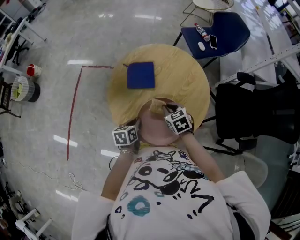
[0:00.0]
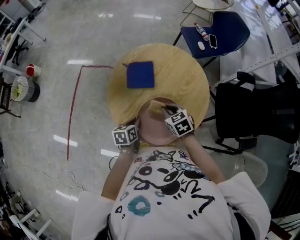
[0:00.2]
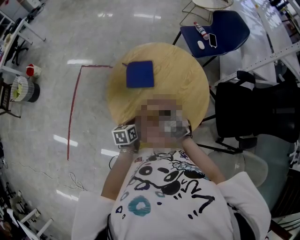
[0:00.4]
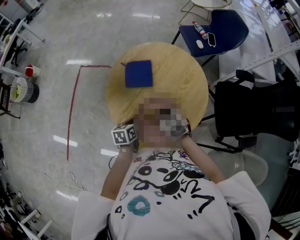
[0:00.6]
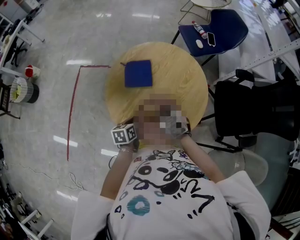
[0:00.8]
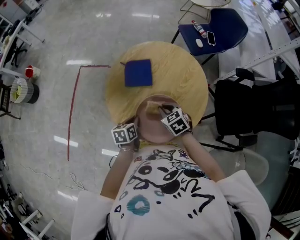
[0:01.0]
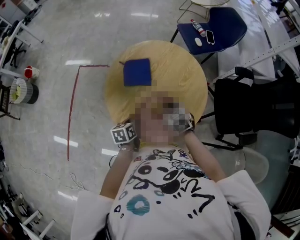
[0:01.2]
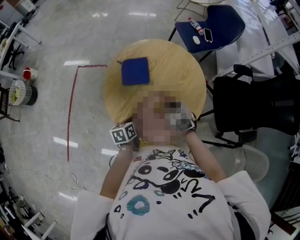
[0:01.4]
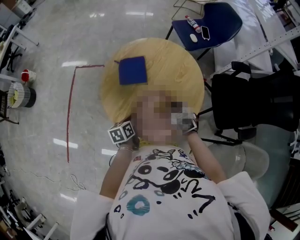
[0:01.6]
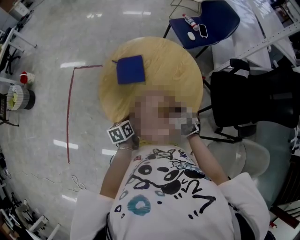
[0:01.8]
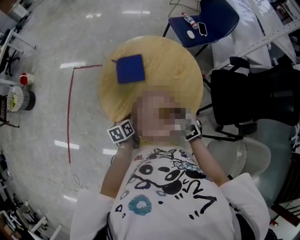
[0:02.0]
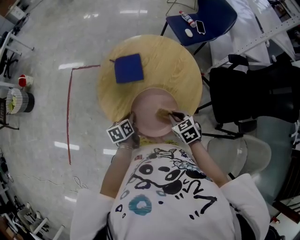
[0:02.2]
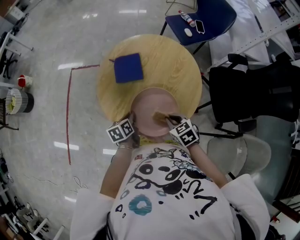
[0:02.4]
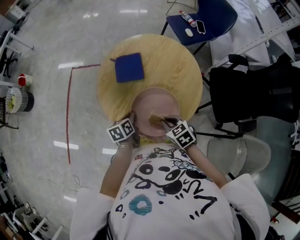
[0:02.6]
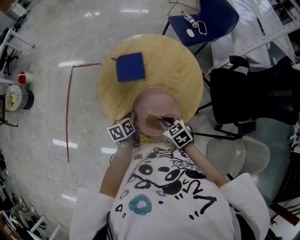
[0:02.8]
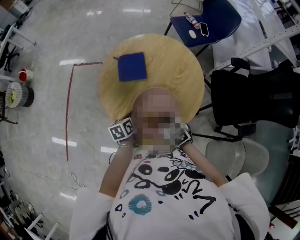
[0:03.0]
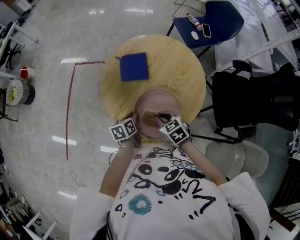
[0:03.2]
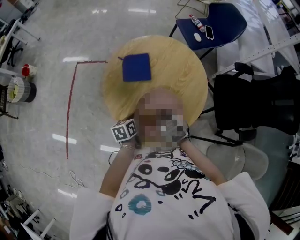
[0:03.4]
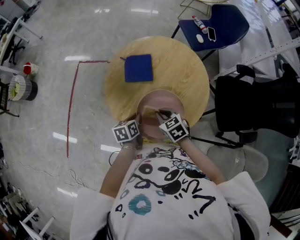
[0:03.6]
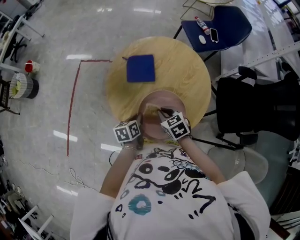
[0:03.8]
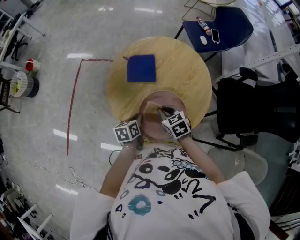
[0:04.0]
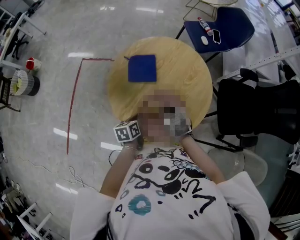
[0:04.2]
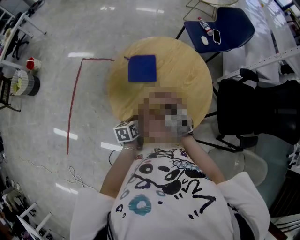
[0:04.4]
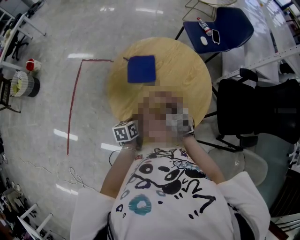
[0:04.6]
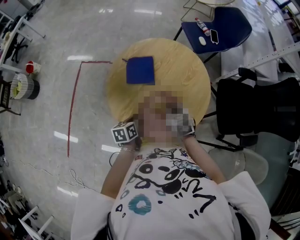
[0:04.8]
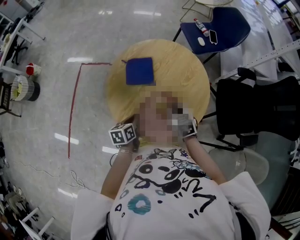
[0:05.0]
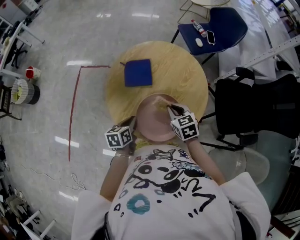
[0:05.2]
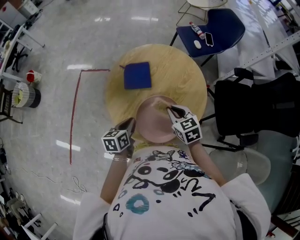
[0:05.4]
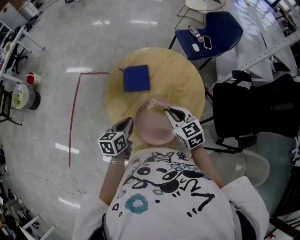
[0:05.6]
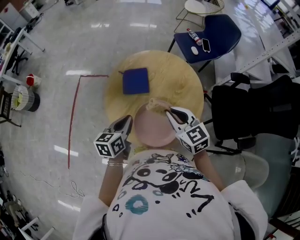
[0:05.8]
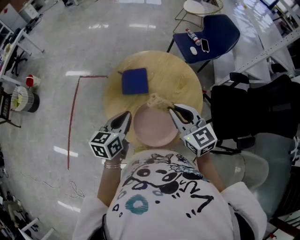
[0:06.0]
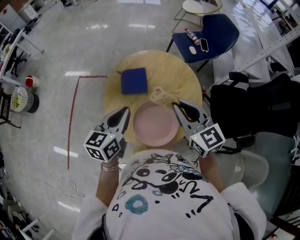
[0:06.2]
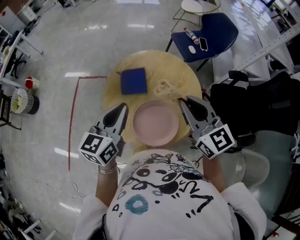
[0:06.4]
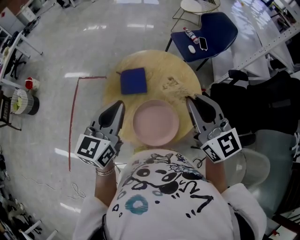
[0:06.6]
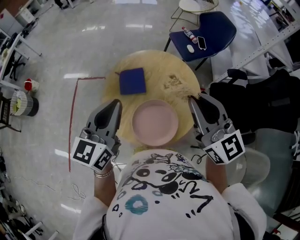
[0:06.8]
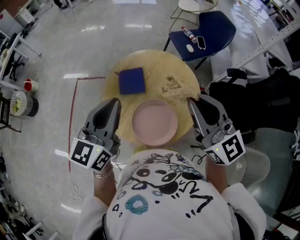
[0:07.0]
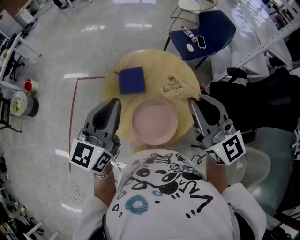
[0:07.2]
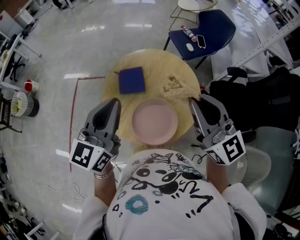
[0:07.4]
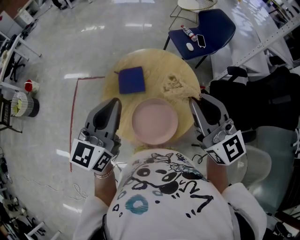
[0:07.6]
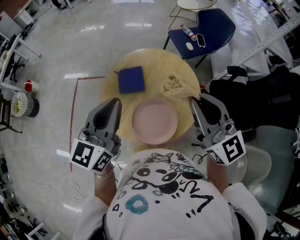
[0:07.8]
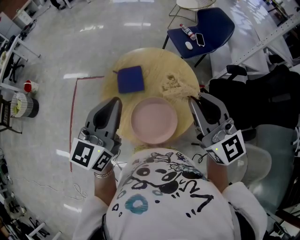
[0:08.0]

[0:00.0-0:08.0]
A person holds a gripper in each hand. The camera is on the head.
0:00.0 to 0:01.6: The right gripper moves roughly 5 cm.
0:01.6 to 0:03.2: The right gripper goes approximately 10 cm to the left and backward.
0:03.2 to 0:04.8: The right gripper travels forward by some 5 cm.
0:04.8 to 0:06.4: Both grippers move upward, roughly 30 cm. The left gripper tilts its fingers approximately 30 degrees upward; the right gripper tilts its fingers some 40 degrees upward.
0:06.4 to 0:08.0: The two grippers go some 5 cm upward.

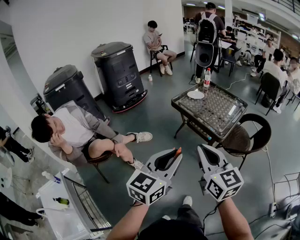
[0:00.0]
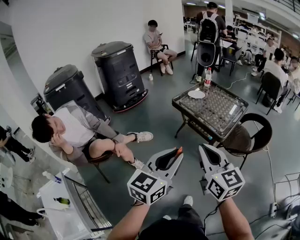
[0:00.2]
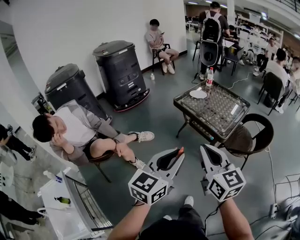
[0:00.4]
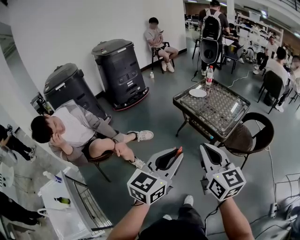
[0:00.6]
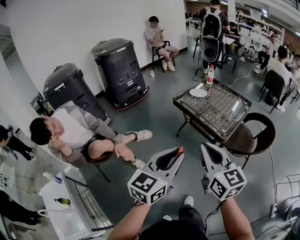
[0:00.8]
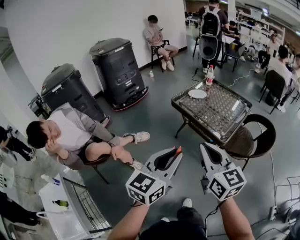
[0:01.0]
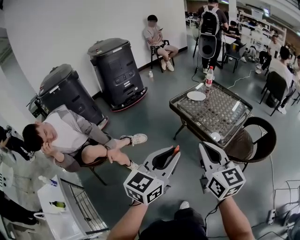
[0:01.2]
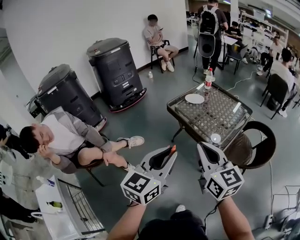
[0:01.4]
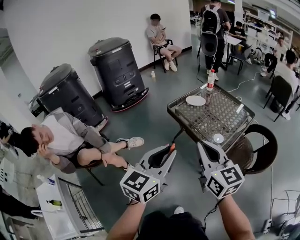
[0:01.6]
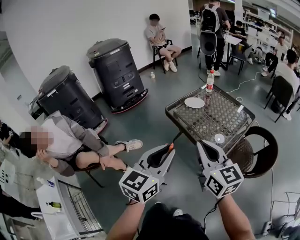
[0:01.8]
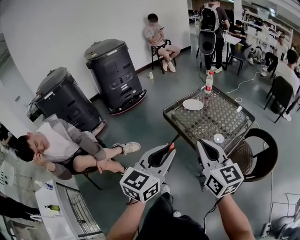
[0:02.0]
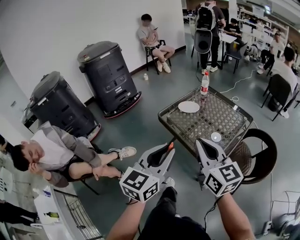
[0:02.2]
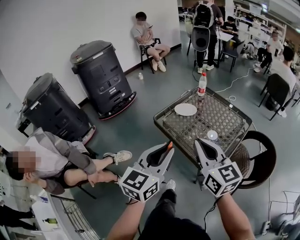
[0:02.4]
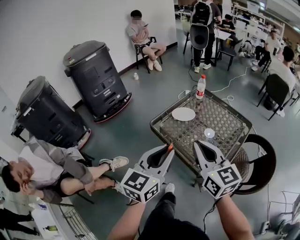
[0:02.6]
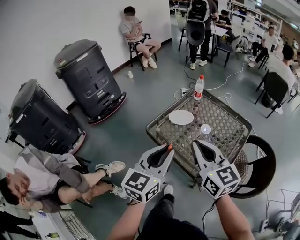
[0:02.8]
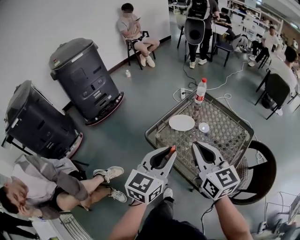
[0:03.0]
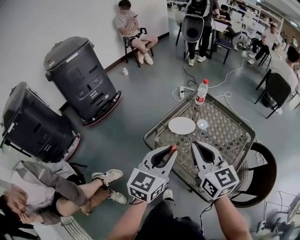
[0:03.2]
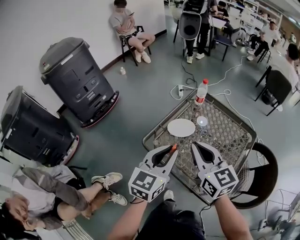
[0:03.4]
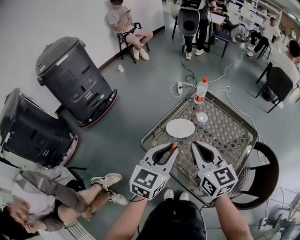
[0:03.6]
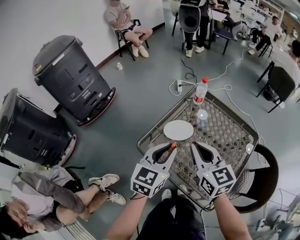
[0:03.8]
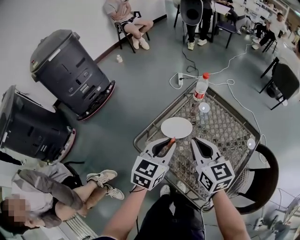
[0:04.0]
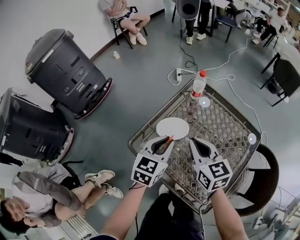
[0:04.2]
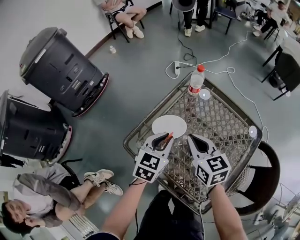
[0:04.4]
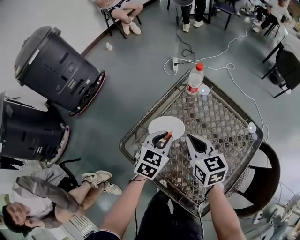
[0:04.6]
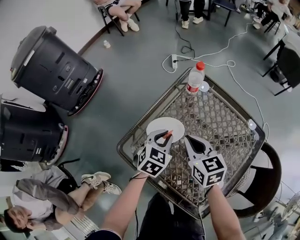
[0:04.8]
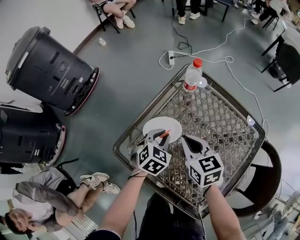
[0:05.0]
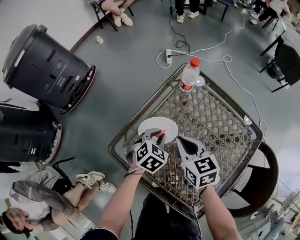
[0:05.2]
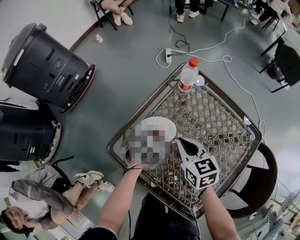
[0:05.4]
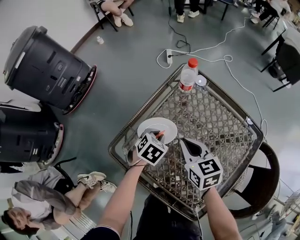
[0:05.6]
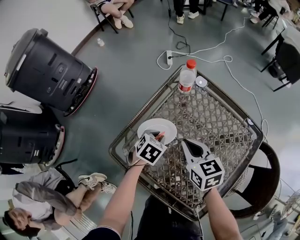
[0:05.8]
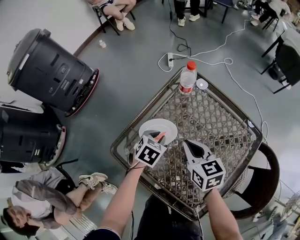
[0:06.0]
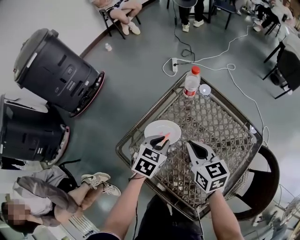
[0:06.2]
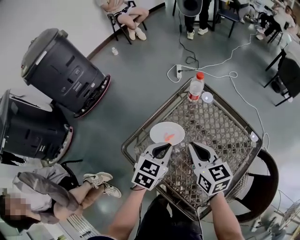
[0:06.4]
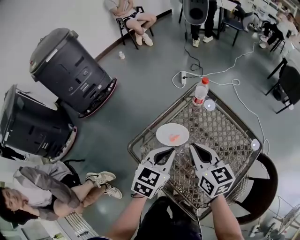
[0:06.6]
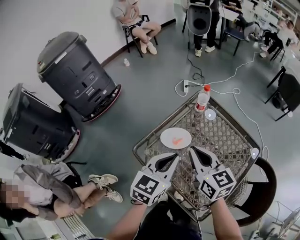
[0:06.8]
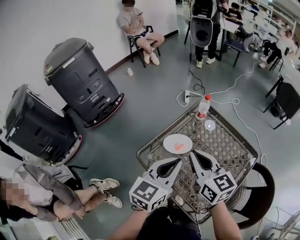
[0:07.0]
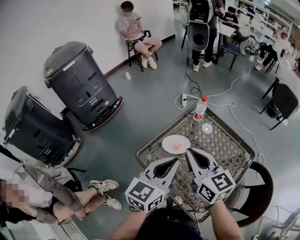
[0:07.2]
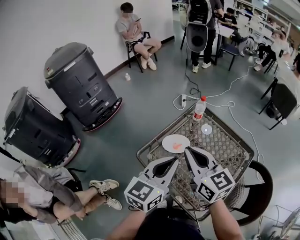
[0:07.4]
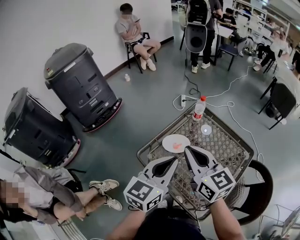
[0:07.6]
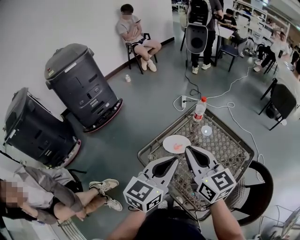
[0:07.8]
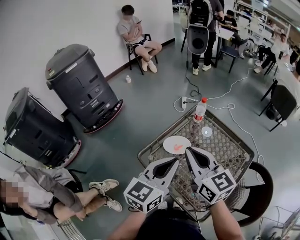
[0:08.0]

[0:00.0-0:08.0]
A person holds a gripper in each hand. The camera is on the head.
0:00.0 to 0:01.6: The right gripper moves forward and to the right, about 20 cm, while the left gripper is displaced forward by approximately 20 cm.
0:01.6 to 0:03.2: The two grippers go roughly 40 cm forward.
0:03.2 to 0:04.8: Both grippers move downward and forward, approximately 30 cm. The left gripper tilts its fingers roughly 30 degrees downward; the right gripper swivels some 20 degrees.
0:04.8 to 0:06.4: Both grippers travel together upward, roughly 5 cm.
0:06.4 to 0:08.0: The right gripper shifts roughly 20 cm upward, and turns by approximately 20 degrees, while the left gripper goes roughly 25 cm upward and backward, and rotates some 30 degrees.

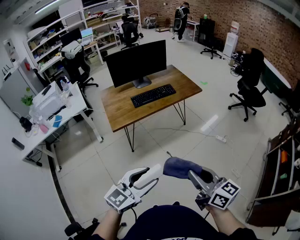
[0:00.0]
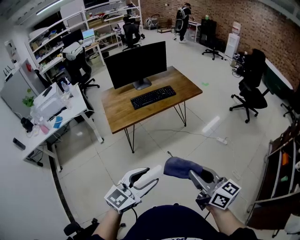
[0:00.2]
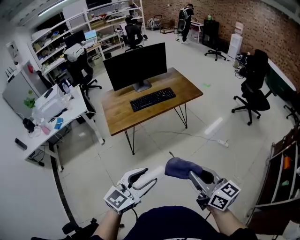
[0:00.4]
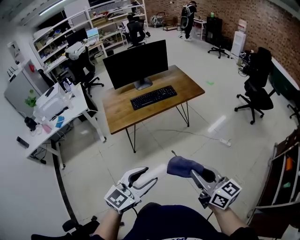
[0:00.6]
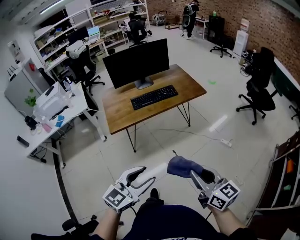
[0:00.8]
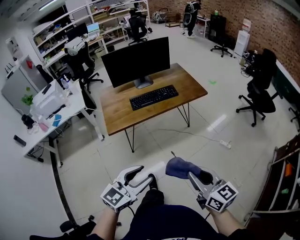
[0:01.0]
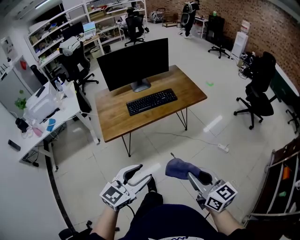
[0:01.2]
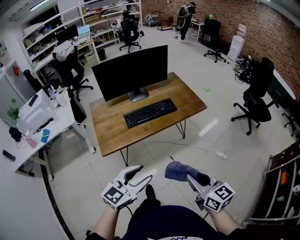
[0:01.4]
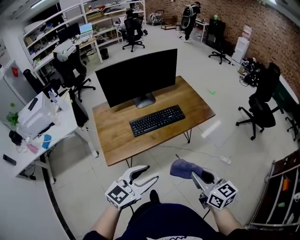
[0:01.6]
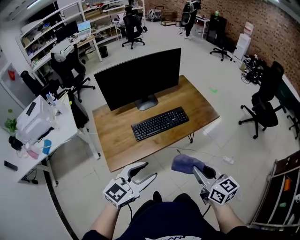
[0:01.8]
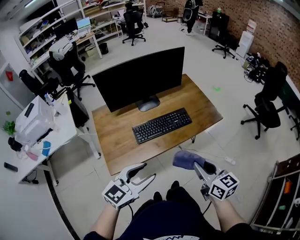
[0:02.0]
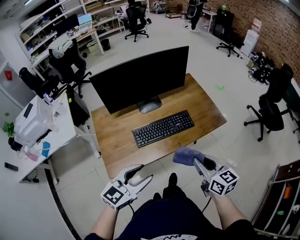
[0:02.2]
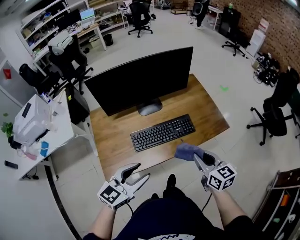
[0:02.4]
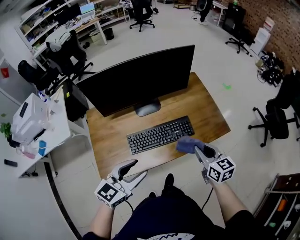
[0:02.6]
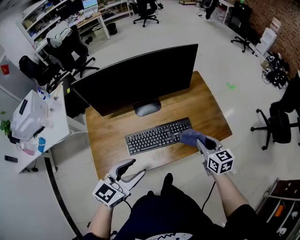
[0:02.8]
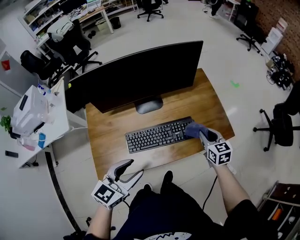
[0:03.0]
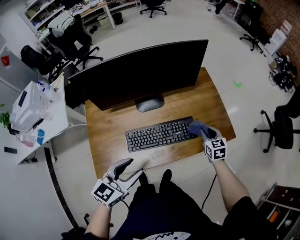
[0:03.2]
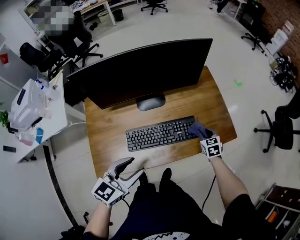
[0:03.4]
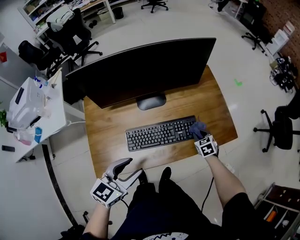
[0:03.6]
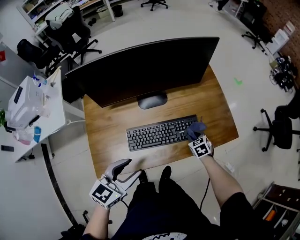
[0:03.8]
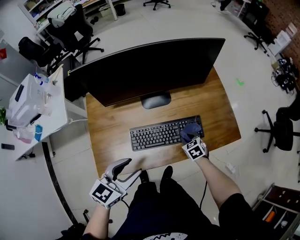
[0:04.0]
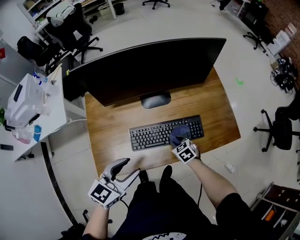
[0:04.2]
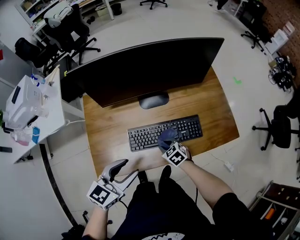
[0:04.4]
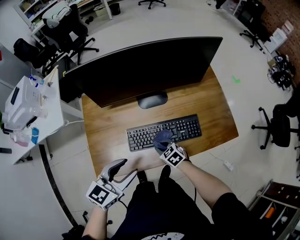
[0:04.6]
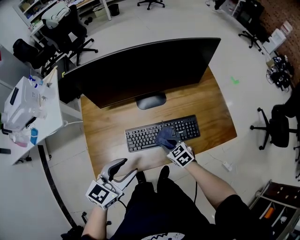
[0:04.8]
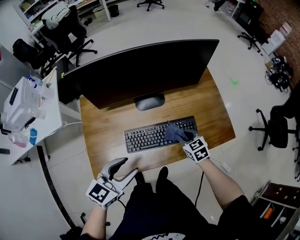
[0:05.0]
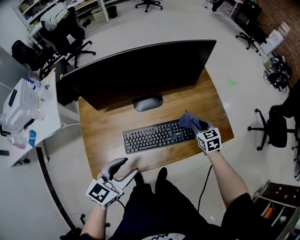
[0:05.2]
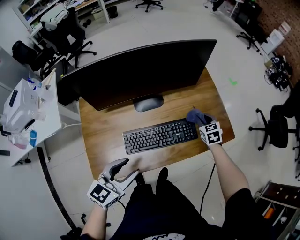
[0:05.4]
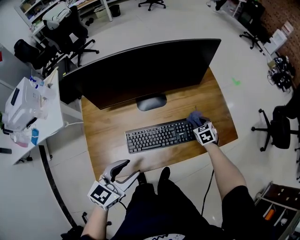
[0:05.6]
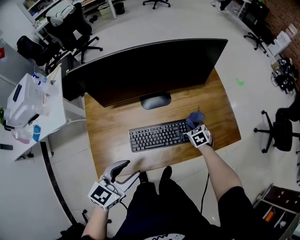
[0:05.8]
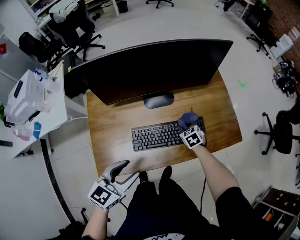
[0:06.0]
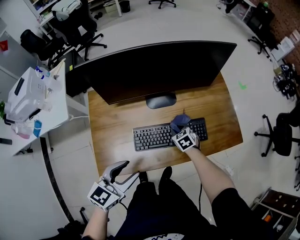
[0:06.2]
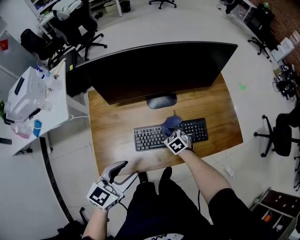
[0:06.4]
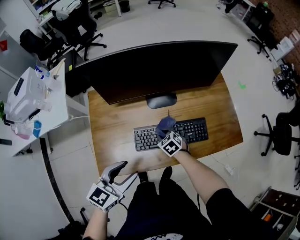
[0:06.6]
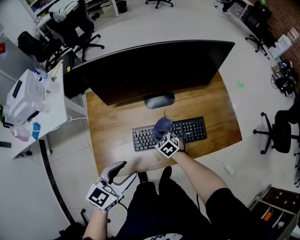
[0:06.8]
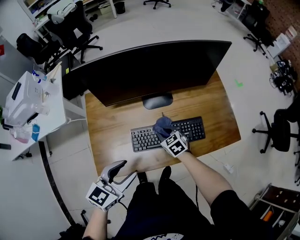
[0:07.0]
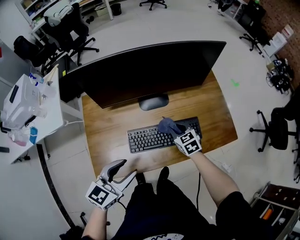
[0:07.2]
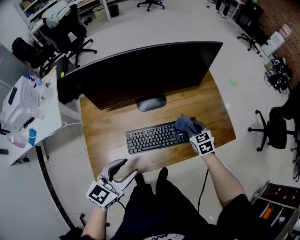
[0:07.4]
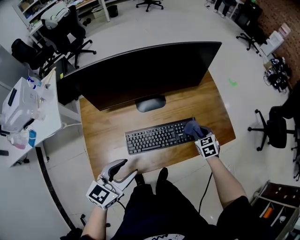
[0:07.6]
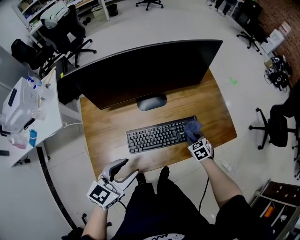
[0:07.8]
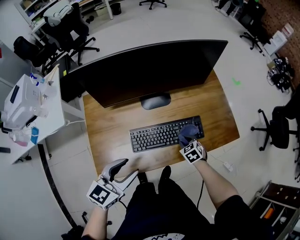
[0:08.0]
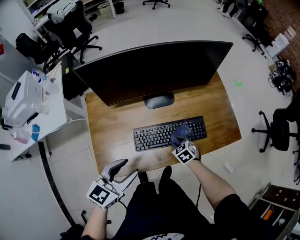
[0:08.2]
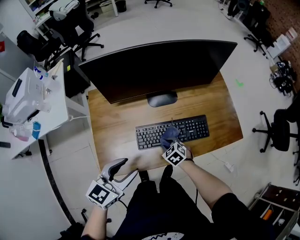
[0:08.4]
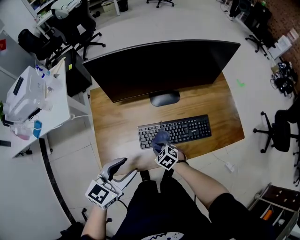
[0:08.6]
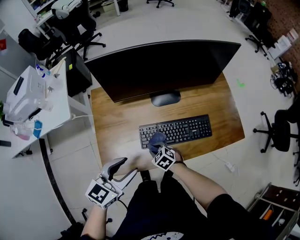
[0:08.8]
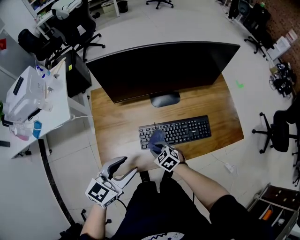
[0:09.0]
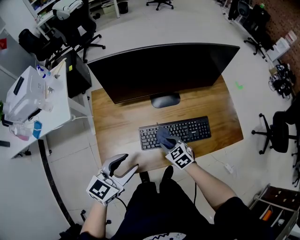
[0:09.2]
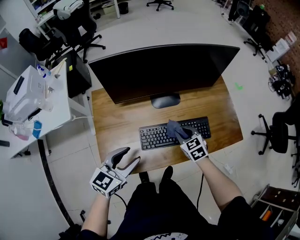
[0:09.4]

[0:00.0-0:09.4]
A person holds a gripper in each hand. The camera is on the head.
0:00.0 to 0:01.6: The grippers both shift forward by some 35 cm.
0:01.6 to 0:03.2: The left gripper heads forward, covering some 30 cm, and changes its angle by roughly 20 degrees. The right gripper shifts approximately 60 cm forward and downward, and rotates approximately 30 degrees.
0:03.2 to 0:04.8: The right gripper travels to the left by roughly 25 cm, and changes its angle by roughly 30 degrees, while the left gripper heads to the left, covering approximately 5 cm.
0:04.8 to 0:06.2: The right gripper travels forward by some 10 cm, and reaches roughly 20 cm to the right, then returns.
0:06.2 to 0:07.8: The right gripper heads to the right, covering roughly 15 cm.
0:07.8 to 0:09.4: The left gripper heads to the left, covering roughly 5 cm. Meanwhile the right gripper goes roughly 20 cm to the left and upward.
